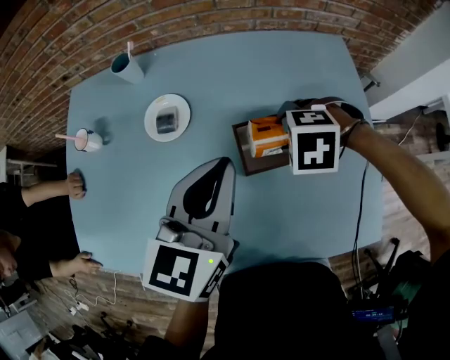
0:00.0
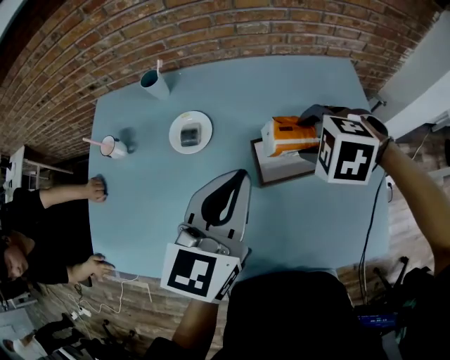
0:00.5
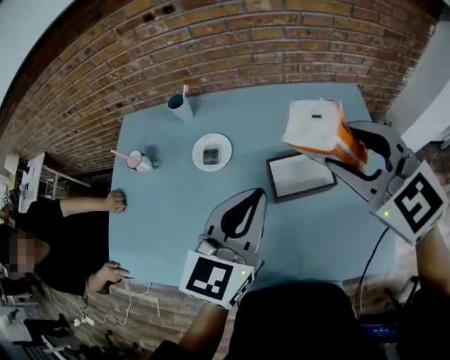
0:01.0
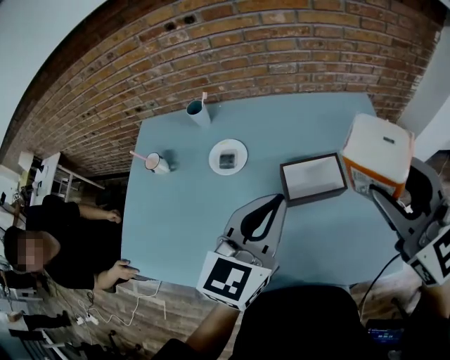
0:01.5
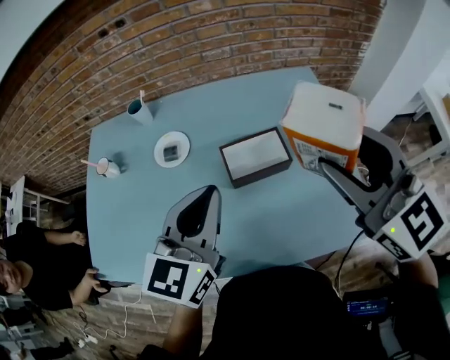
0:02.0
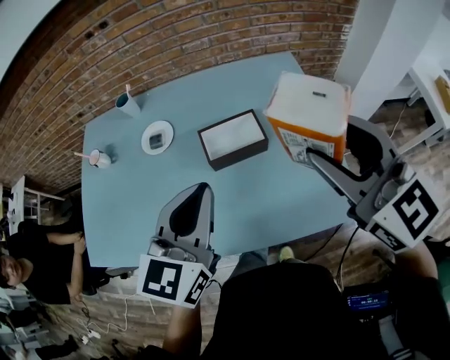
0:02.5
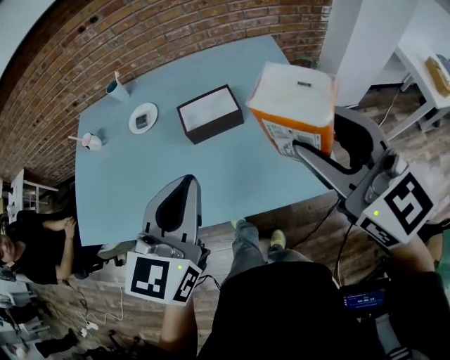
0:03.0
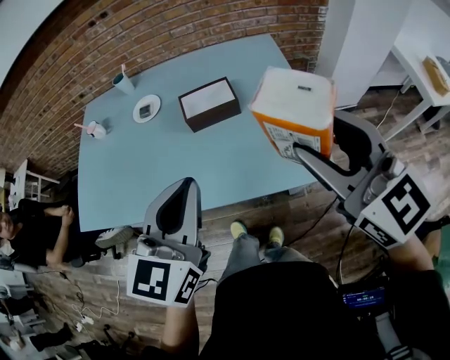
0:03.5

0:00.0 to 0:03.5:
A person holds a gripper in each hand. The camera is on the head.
0:00.0 to 0:02.0: The right gripper is displaced upward by some 30 cm, and angles its fingers upward, by some 70 degrees. The left gripper ends up approximately 10 cm from where it was.
0:02.0 to 0:03.5: The right gripper moves backward and to the right, approximately 25 cm; the left gripper goes about 25 cm backward.

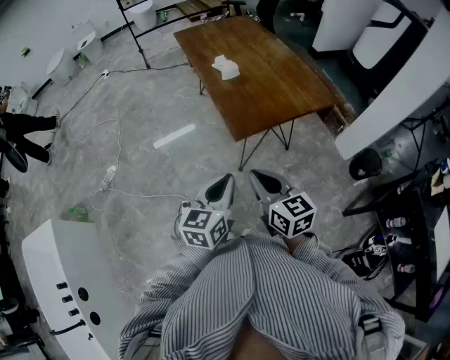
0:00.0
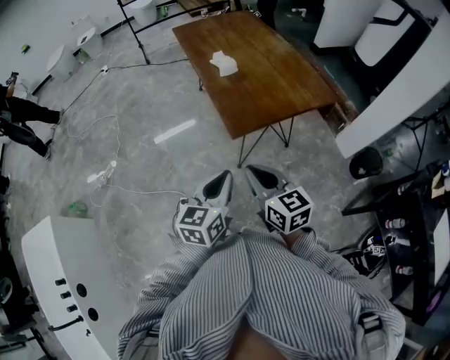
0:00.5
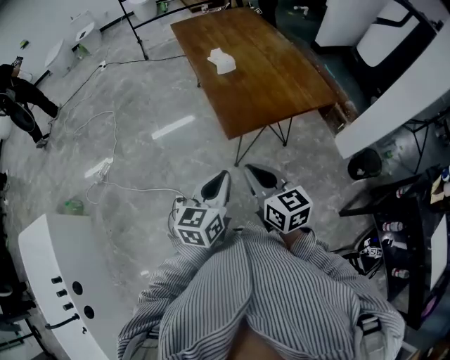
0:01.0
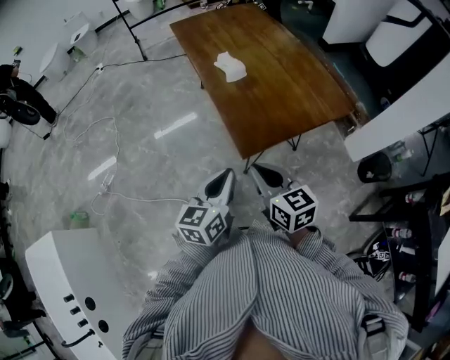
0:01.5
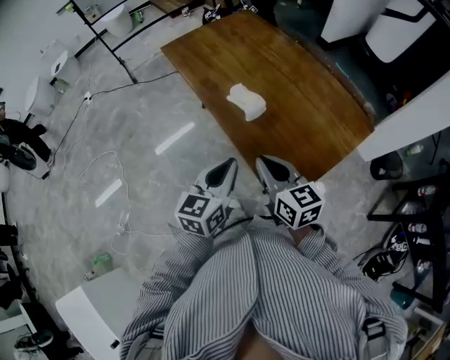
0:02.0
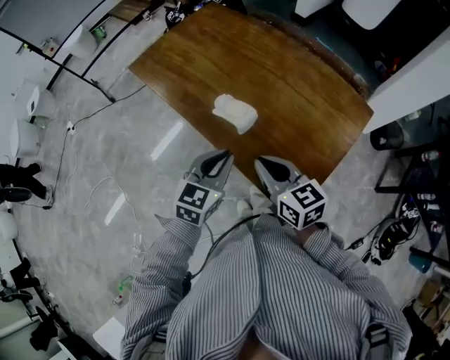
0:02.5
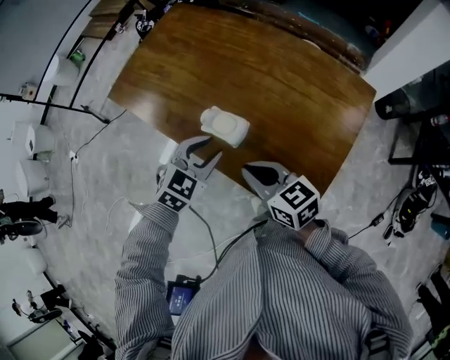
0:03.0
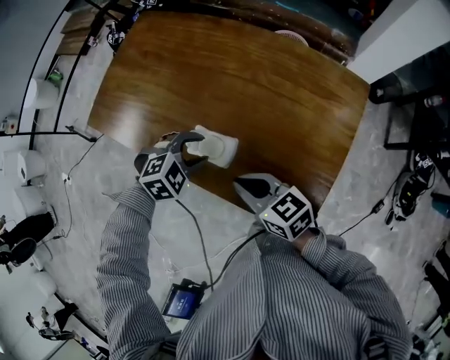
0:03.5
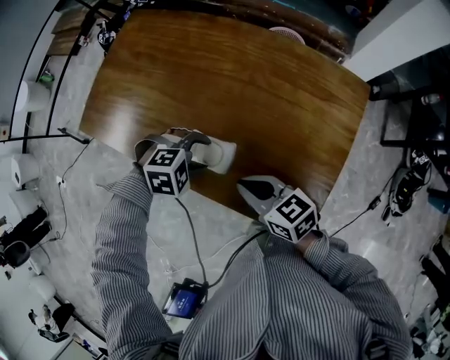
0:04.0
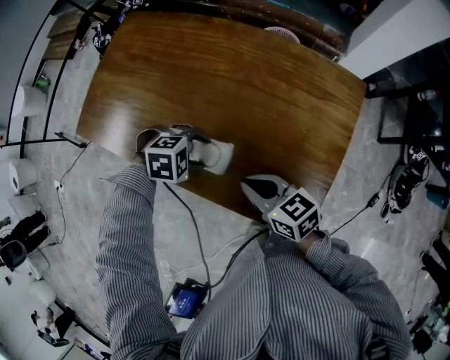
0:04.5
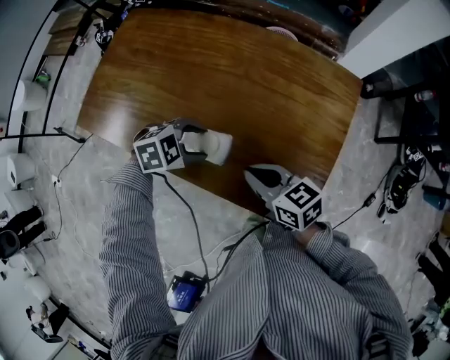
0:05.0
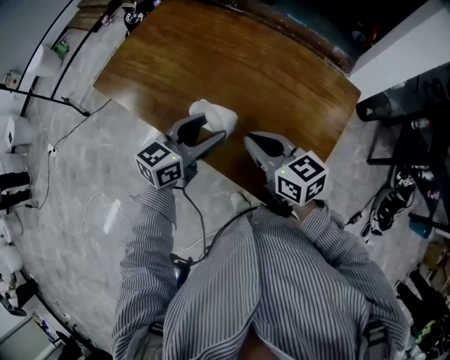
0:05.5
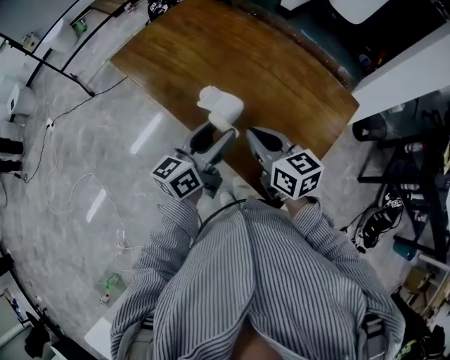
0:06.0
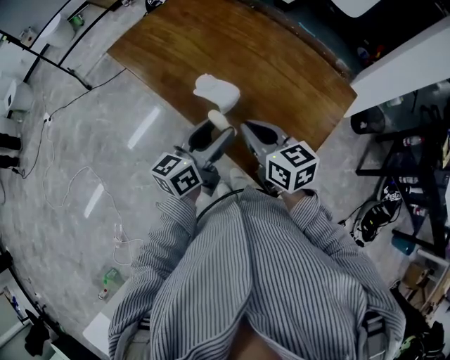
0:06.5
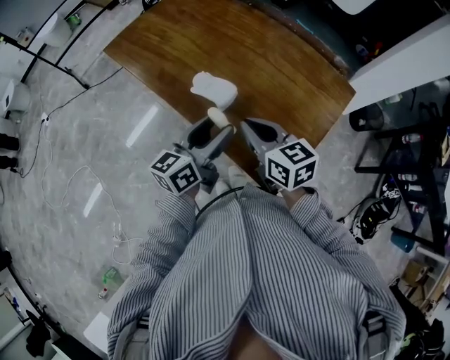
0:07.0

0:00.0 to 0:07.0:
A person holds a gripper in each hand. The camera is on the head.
0:00.0 to 0:02.0: The two grippers go some 40 cm forward.
0:02.0 to 0:03.5: The left gripper ends up approximately 30 cm from where it was, tips its fingers downward by approximately 50 degrees, and opens up. The right gripper shifts by approximately 20 cm.
0:05.0 to 0:07.0: The right gripper moves upward, roughly 10 cm. The left gripper moves roughly 20 cm, and tips its fingers upward by roughly 60 degrees.

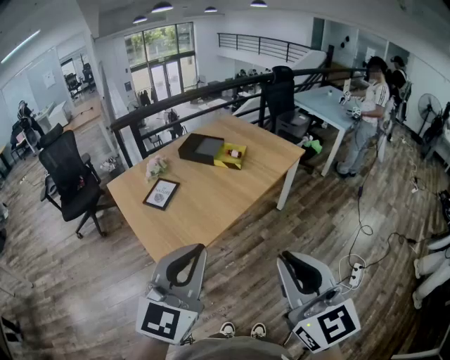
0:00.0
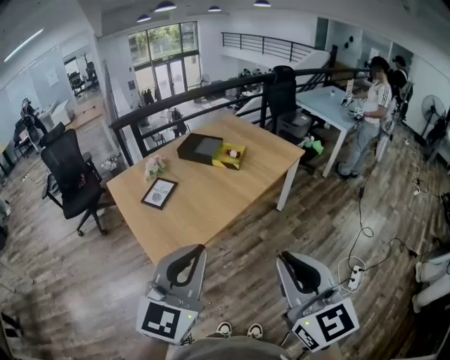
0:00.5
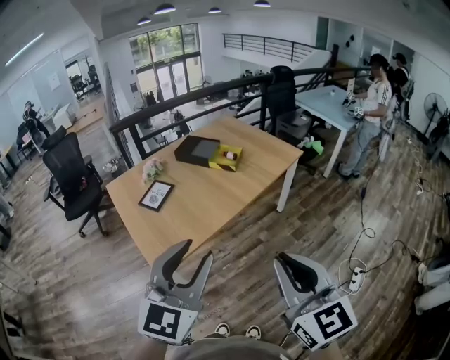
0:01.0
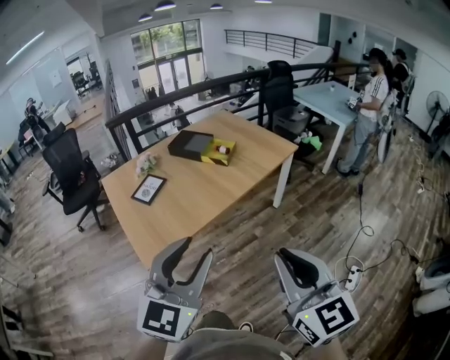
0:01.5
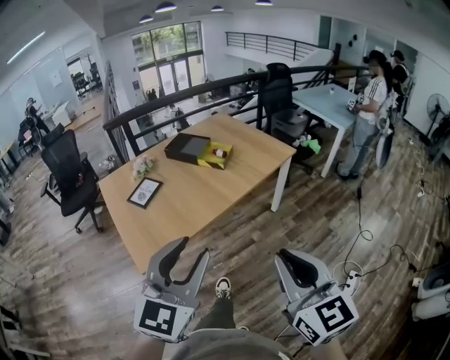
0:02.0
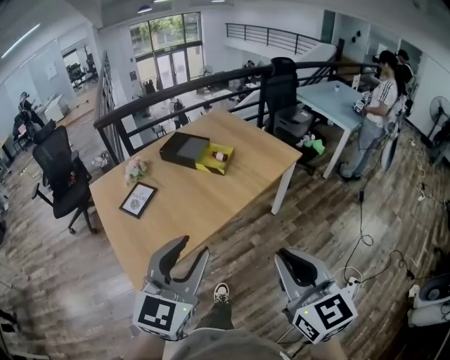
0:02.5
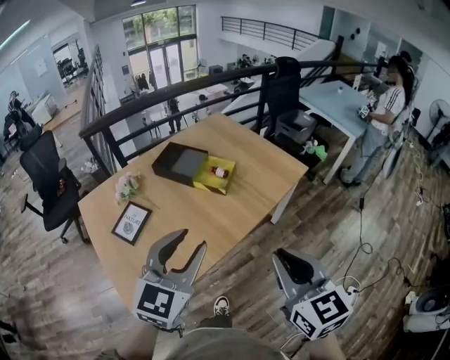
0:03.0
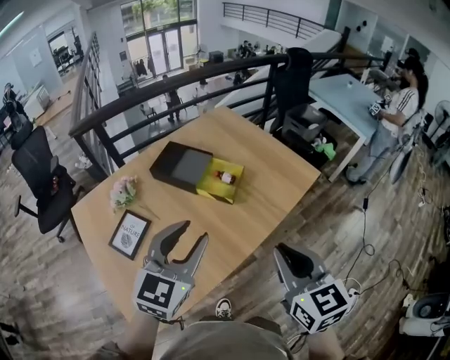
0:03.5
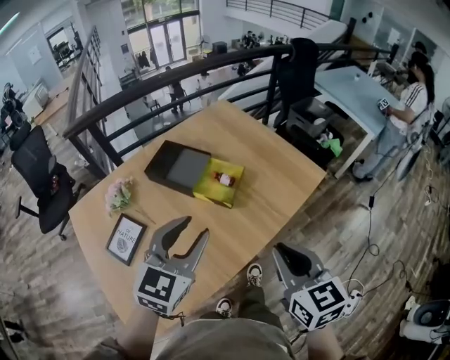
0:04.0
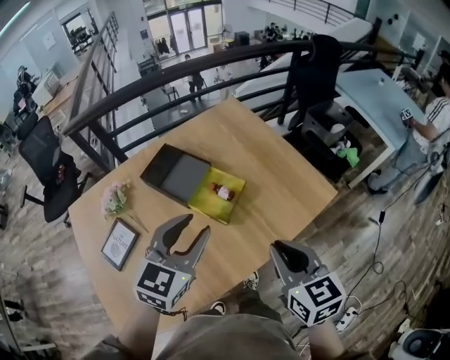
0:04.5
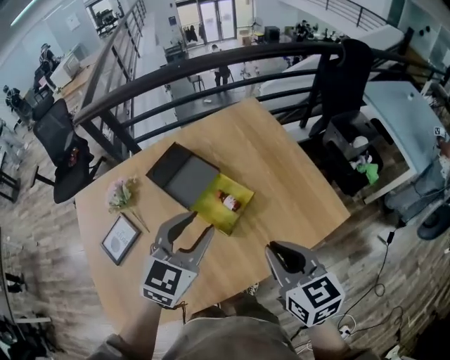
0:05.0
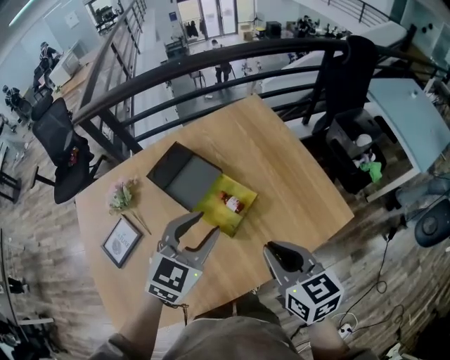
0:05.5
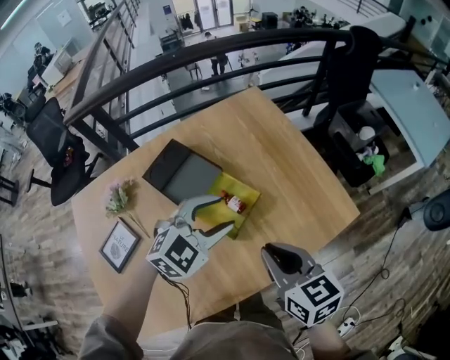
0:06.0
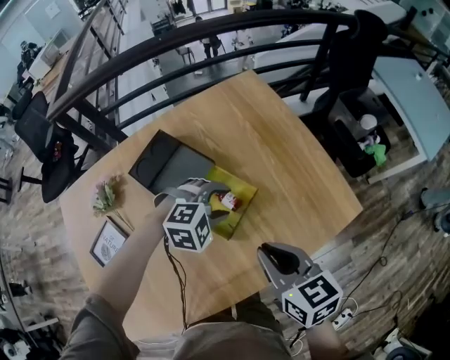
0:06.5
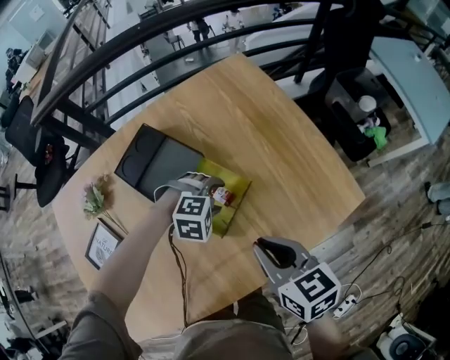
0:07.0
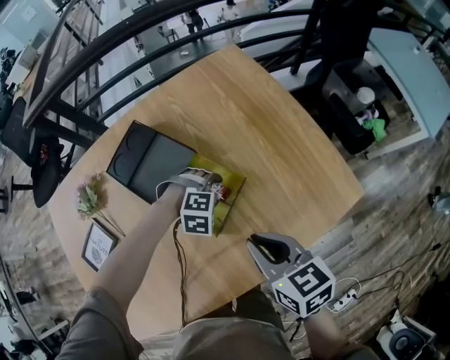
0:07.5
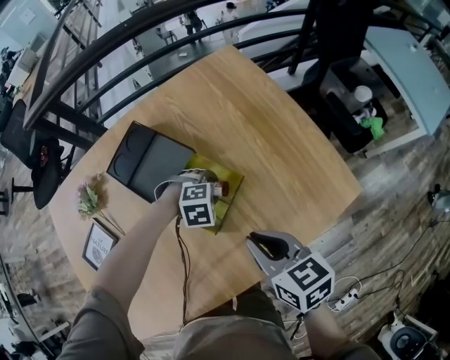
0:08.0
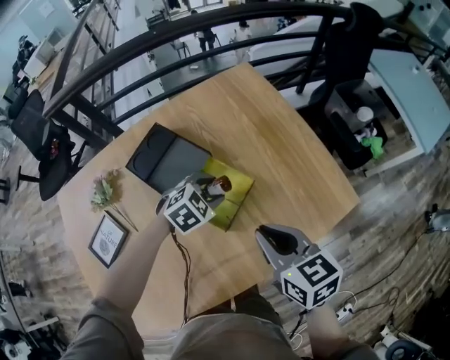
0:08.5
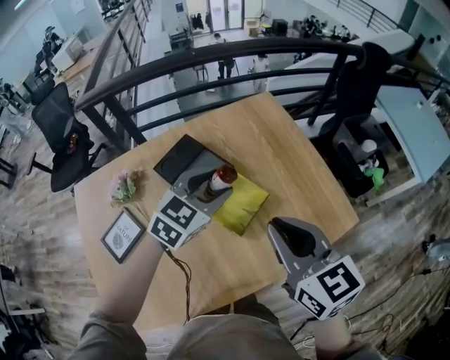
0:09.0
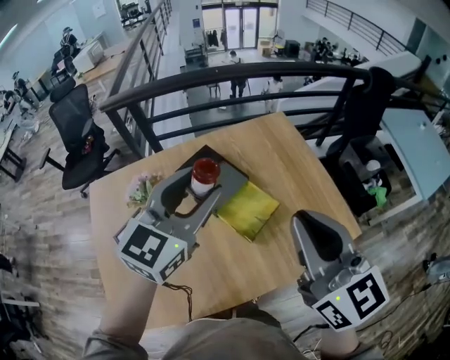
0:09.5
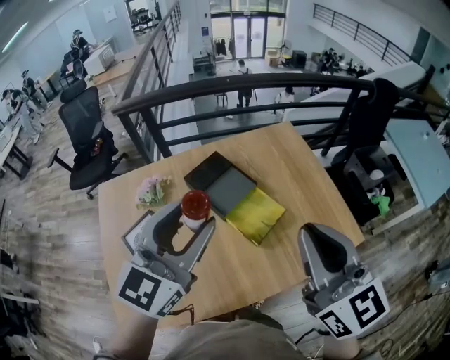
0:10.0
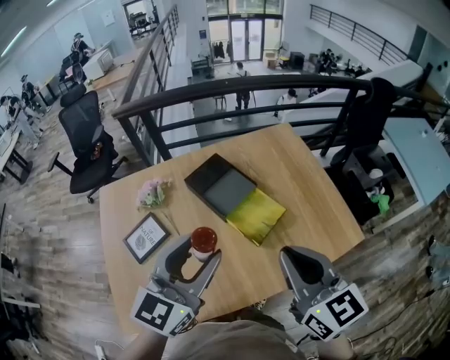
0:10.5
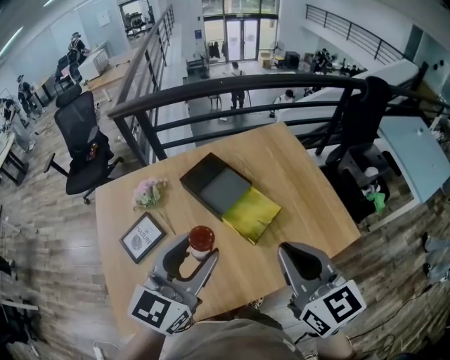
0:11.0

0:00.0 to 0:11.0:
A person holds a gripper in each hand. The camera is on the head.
0:00.0 to 0:02.0: The two grippers go about 15 cm to the right. The left gripper opens.
0:02.0 to 0:03.5: Both grippers are carried forward, approximately 40 cm.
0:03.5 to 0:05.5: The right gripper goes approximately 25 cm forward, and swivels some 30 degrees; the left gripper shifts roughly 25 cm forward and to the right.
0:05.5 to 0:07.5: The left gripper moves downward, approximately 30 cm, and points its fingers some 50 degrees further downward. Meanwhile the right gripper heads downward and forward, covering roughly 15 cm.
0:07.5 to 0:09.0: The right gripper travels upward by about 20 cm, and turns by about 20 degrees. The left gripper heads upward, covering roughly 30 cm, and tilts its fingers some 50 degrees upward.
0:09.0 to 0:11.0: The left gripper is displaced backward, upward and to the left by roughly 25 cm, and turns by some 30 degrees. Meanwhile the right gripper moves backward and upward, approximately 10 cm.

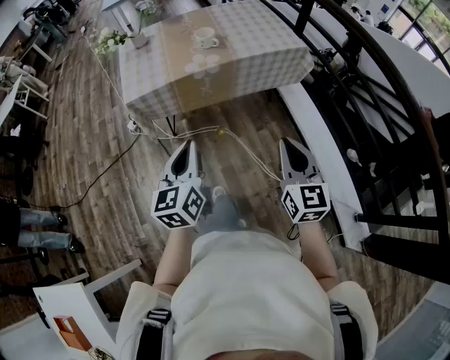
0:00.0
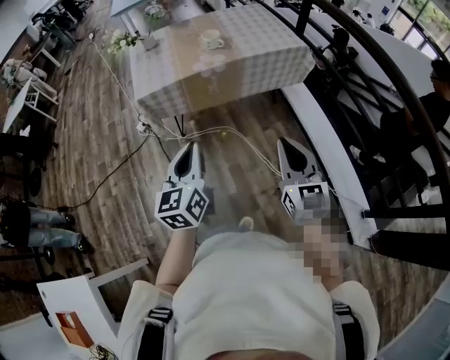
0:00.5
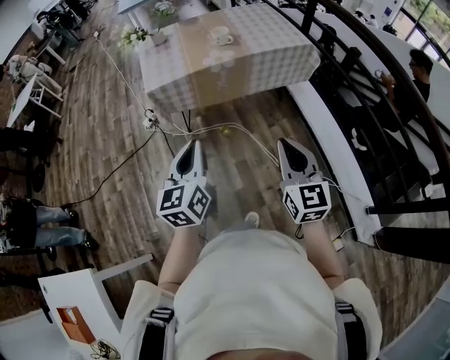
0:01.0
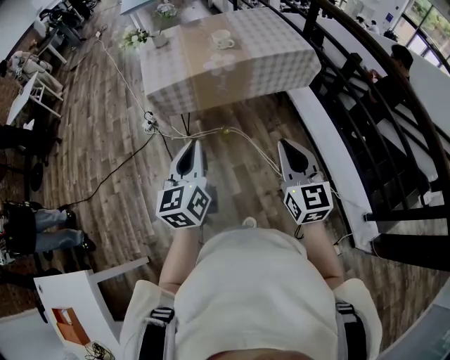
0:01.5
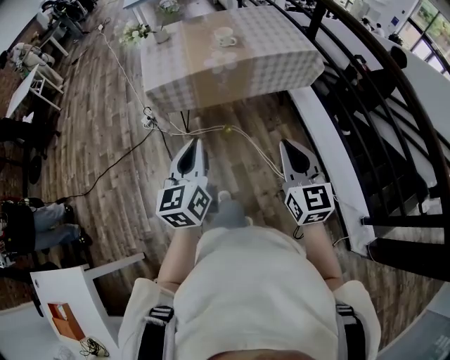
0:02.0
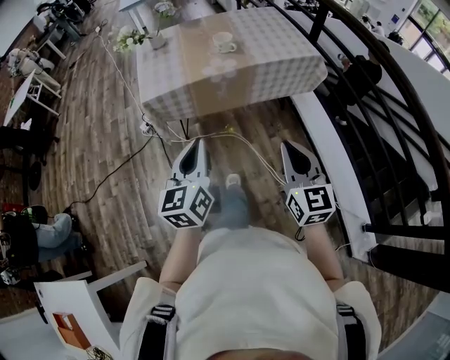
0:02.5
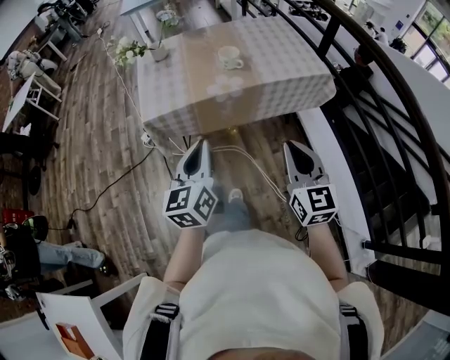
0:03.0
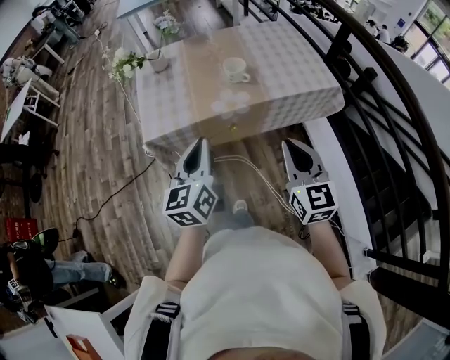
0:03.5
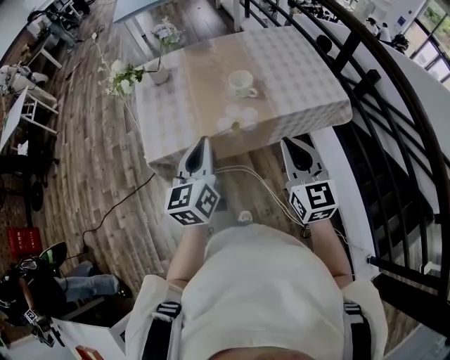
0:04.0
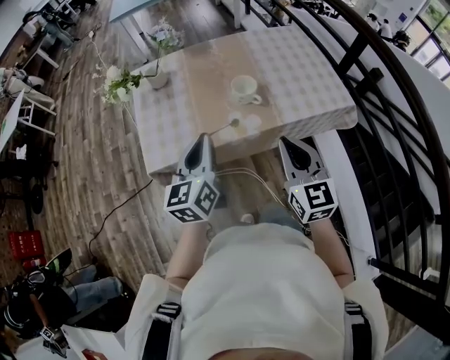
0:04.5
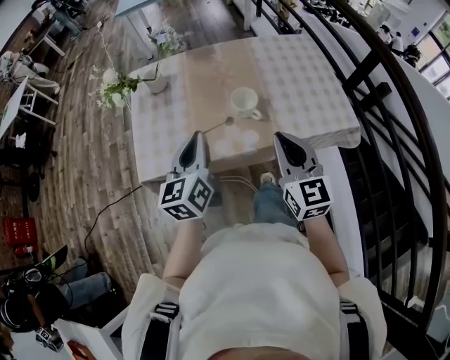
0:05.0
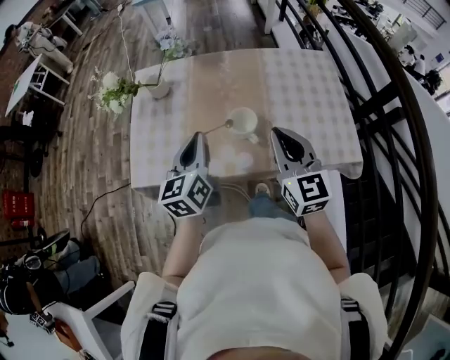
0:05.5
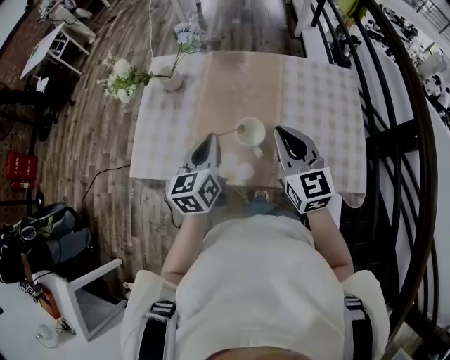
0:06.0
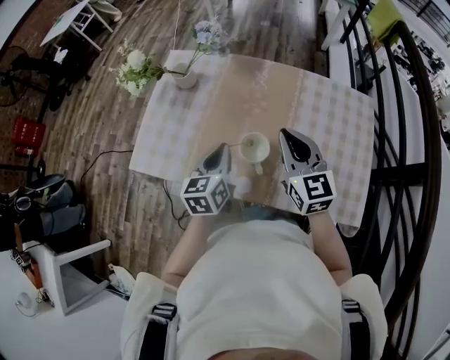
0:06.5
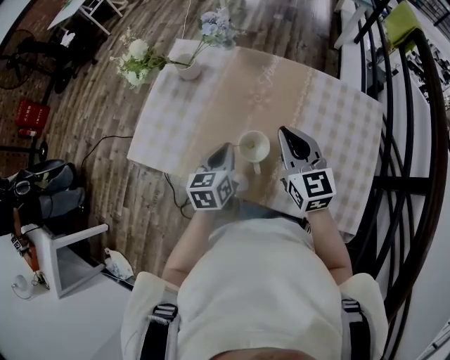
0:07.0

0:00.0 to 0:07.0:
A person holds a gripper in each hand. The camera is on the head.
0:00.0 to 0:02.0: Both grippers travel together backward, some 5 cm.
0:02.0 to 0:03.5: Both grippers move forward, roughly 25 cm.
0:03.5 to 0:05.0: Both grippers travel together forward, approximately 20 cm.
0:05.0 to 0:07.0: The left gripper heads downward, covering some 15 cm, and rotates some 30 degrees. The right gripper moves roughly 25 cm, and rotates some 30 degrees.
